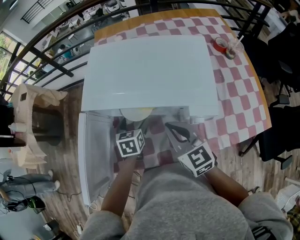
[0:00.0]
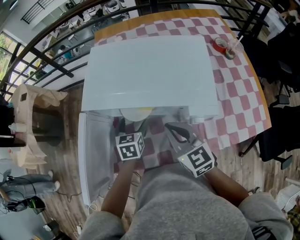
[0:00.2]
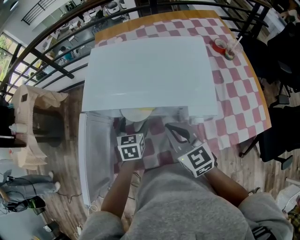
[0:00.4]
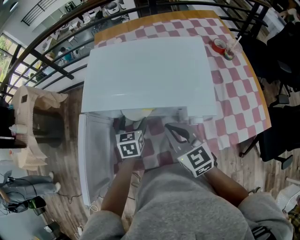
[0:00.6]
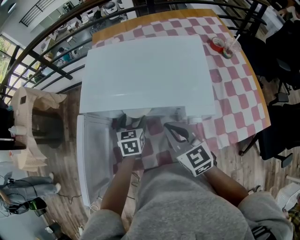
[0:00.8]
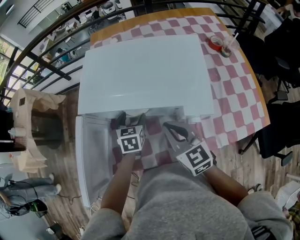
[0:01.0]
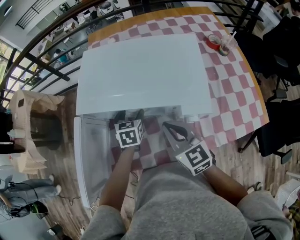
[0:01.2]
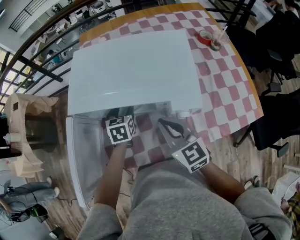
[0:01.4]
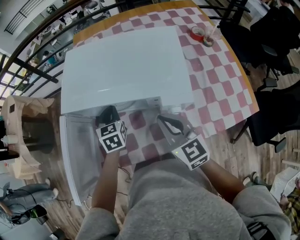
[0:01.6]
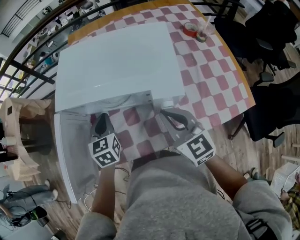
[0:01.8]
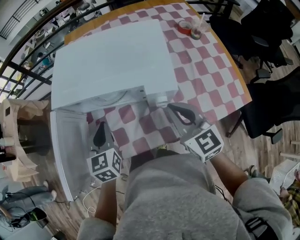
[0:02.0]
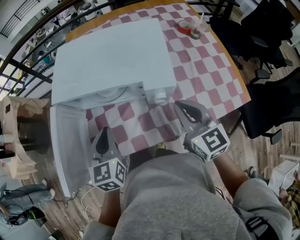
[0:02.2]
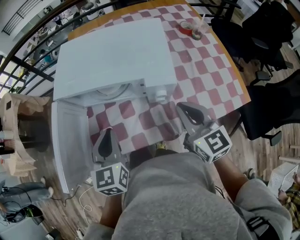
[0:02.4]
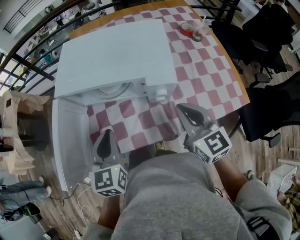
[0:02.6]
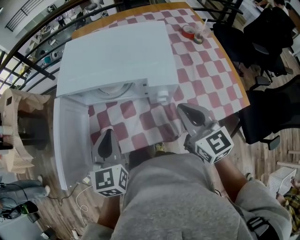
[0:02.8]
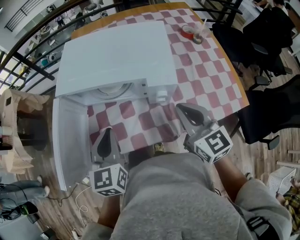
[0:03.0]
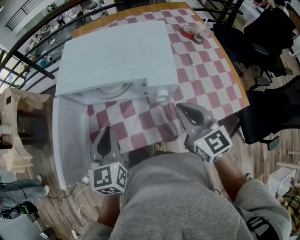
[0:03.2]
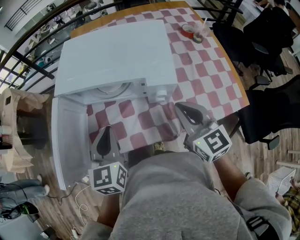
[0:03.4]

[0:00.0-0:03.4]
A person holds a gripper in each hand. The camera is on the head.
0:00.0 to 0:01.6: The right gripper changes place by about 5 cm, while the left gripper shifts by approximately 5 cm, and closes up.
0:01.6 to 0:03.4: The right gripper shifts approximately 10 cm to the right and backward, while the left gripper shifts about 20 cm backward and upward.

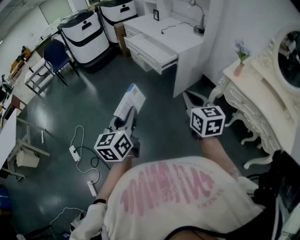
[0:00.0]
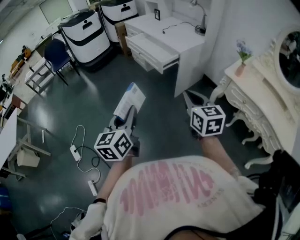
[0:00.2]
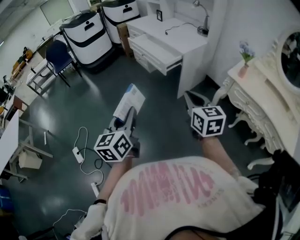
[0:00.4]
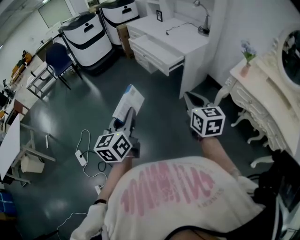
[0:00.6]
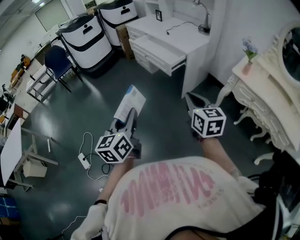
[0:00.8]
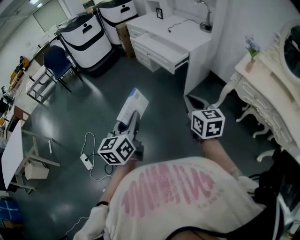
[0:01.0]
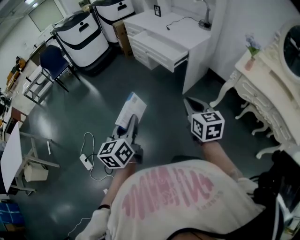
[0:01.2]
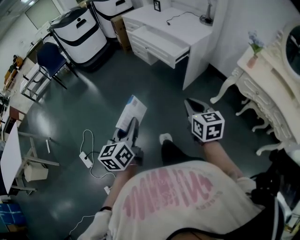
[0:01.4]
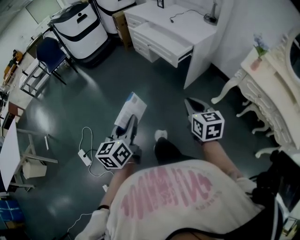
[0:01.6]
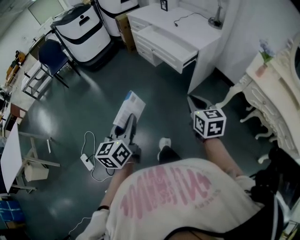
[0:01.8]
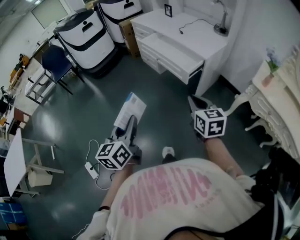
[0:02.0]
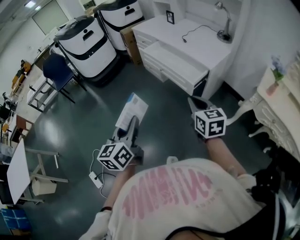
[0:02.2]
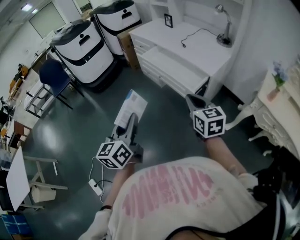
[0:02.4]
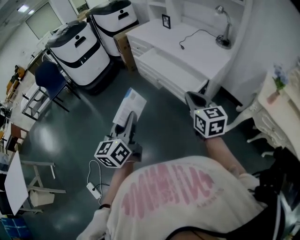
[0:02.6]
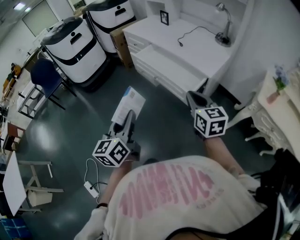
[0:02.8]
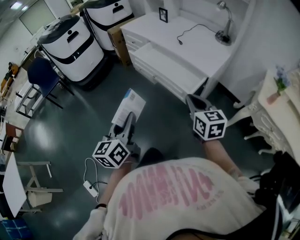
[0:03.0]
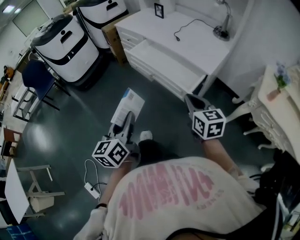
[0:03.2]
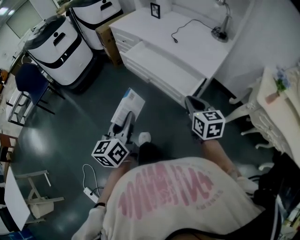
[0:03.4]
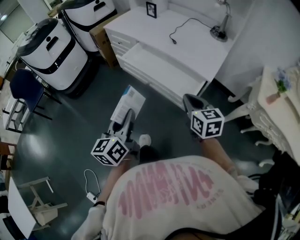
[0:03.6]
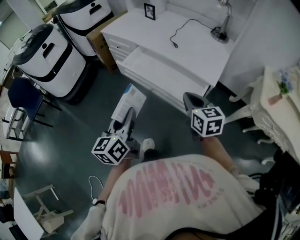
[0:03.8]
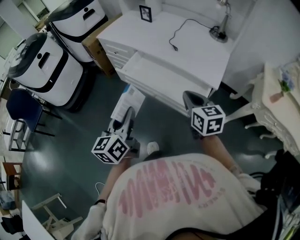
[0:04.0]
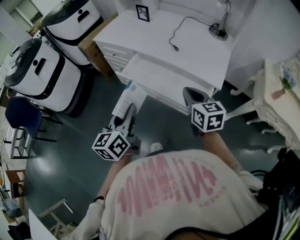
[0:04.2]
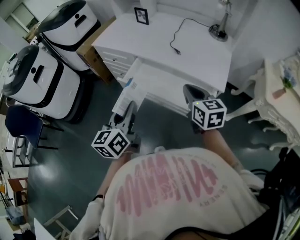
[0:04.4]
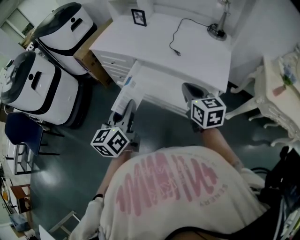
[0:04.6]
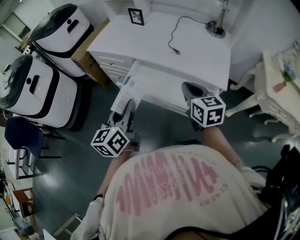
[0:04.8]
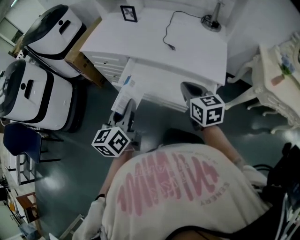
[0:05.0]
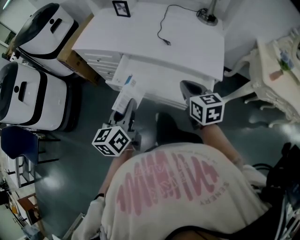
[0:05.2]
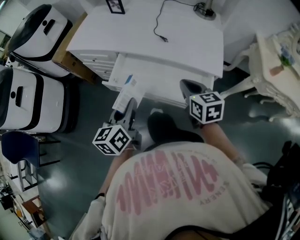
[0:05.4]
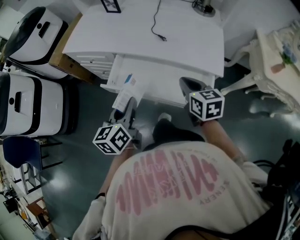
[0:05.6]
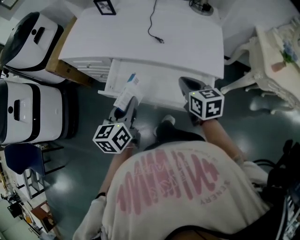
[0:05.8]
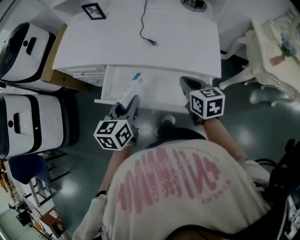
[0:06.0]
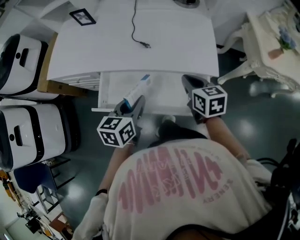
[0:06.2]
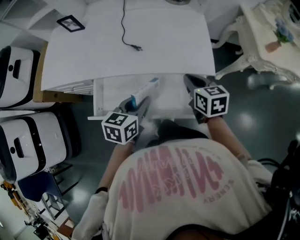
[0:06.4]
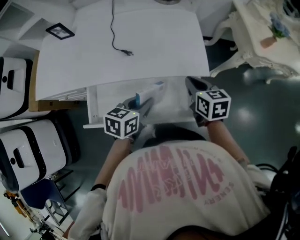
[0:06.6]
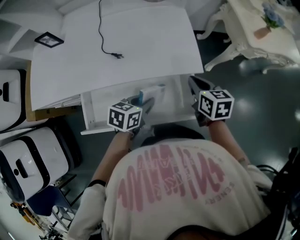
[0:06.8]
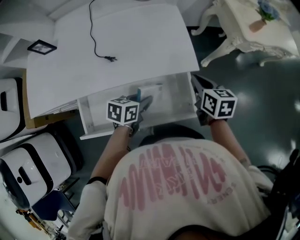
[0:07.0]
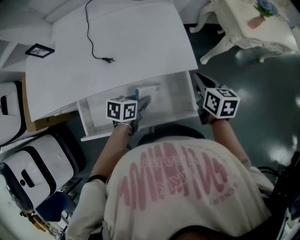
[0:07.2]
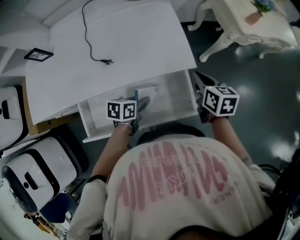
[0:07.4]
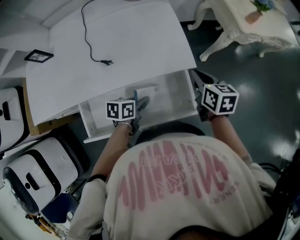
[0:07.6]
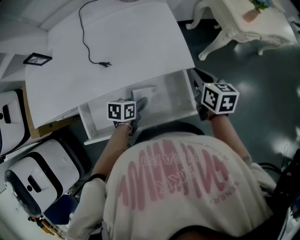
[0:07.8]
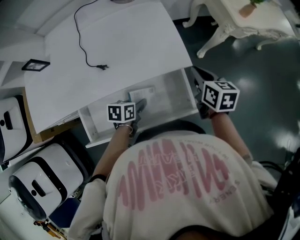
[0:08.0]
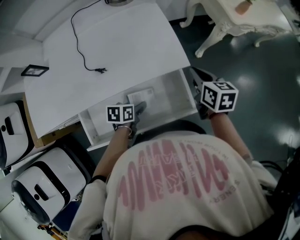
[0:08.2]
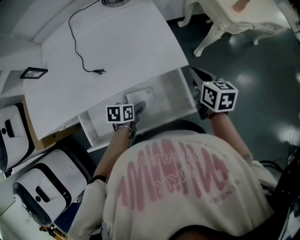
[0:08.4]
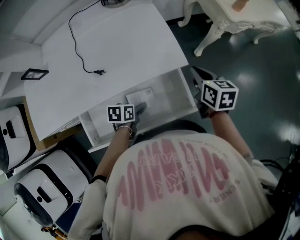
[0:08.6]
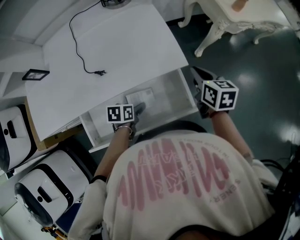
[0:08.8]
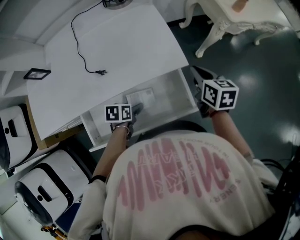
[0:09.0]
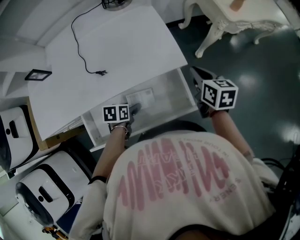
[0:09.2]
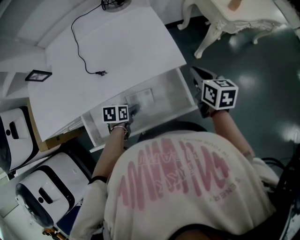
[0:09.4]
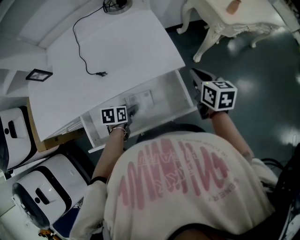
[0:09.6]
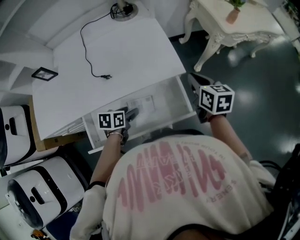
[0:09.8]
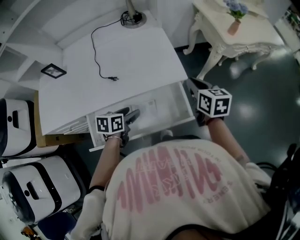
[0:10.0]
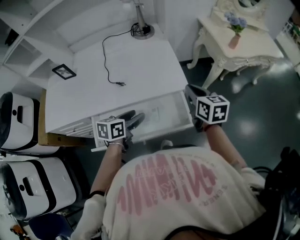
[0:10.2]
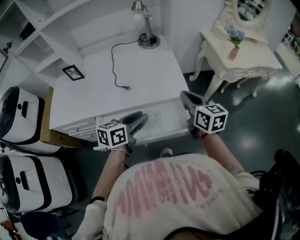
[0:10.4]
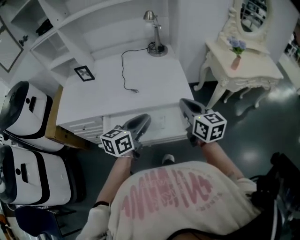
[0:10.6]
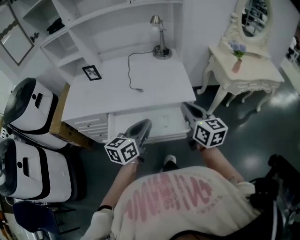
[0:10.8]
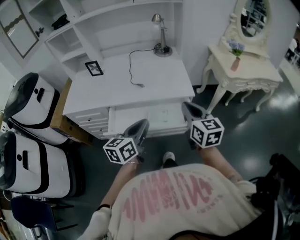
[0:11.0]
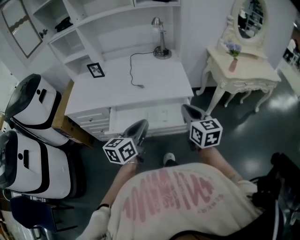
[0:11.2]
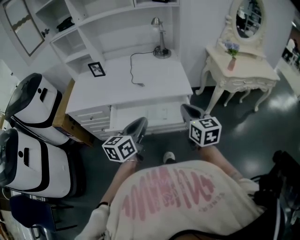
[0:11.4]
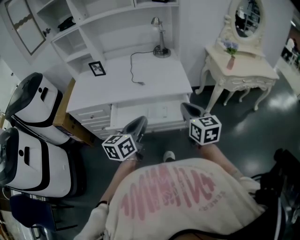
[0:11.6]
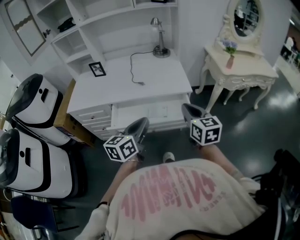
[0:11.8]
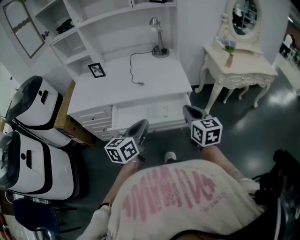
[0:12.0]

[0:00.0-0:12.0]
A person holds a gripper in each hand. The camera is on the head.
0:00.0 to 0:01.6: The two grippers go some 15 cm to the left, downward and forward.
0:01.6 to 0:03.0: The grippers both shift forward by approximately 30 cm.
0:03.0 to 0:04.4: The grippers both shift forward by about 30 cm. The left gripper rotates about 20 degrees.
0:04.4 to 0:06.0: The right gripper moves forward, downward and to the right, about 15 cm, and changes its angle by about 20 degrees; the left gripper goes about 20 cm forward and downward, and swivels some 30 degrees.
0:06.0 to 0:07.6: The right gripper shifts by about 20 cm, and rotates roughly 30 degrees. Meanwhile the left gripper is displaced downward by roughly 15 cm, and changes its angle by roughly 50 degrees.
0:07.6 to 0:09.0: The left gripper ends up approximately 5 cm from where it was, and opens its fingers.
0:09.0 to 0:10.4: The right gripper moves upward, backward and to the left, some 20 cm, and rotates approximately 30 degrees, while the left gripper is displaced upward by roughly 25 cm, tilts its fingers approximately 40 degrees upward, and closes up.
0:10.4 to 0:12.0: The grippers both shift backward by roughly 20 cm. The left gripper rotates some 20 degrees, and closes up.

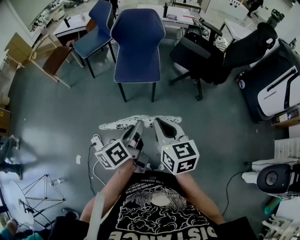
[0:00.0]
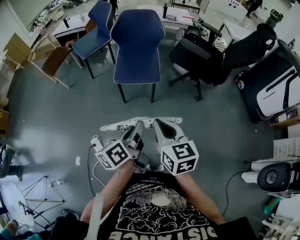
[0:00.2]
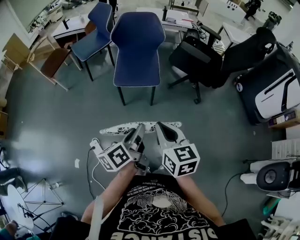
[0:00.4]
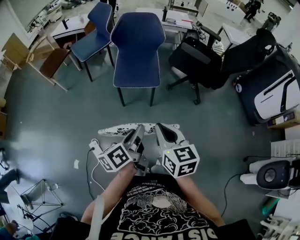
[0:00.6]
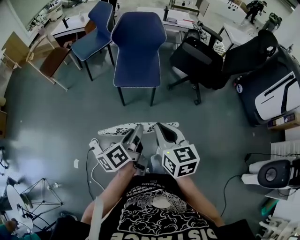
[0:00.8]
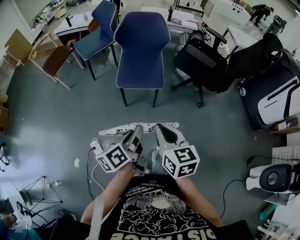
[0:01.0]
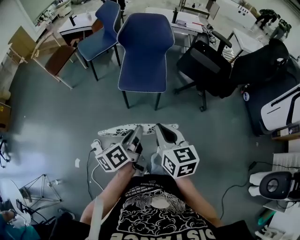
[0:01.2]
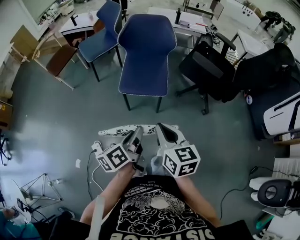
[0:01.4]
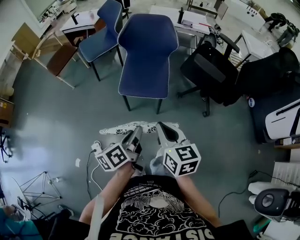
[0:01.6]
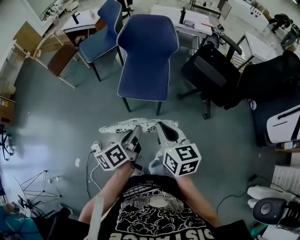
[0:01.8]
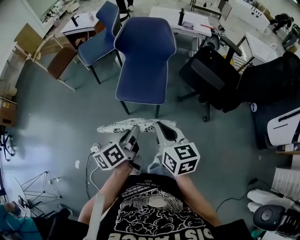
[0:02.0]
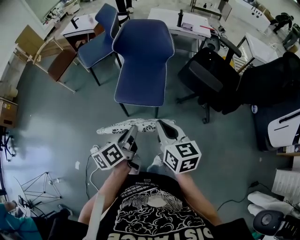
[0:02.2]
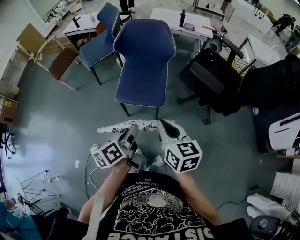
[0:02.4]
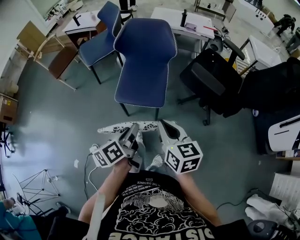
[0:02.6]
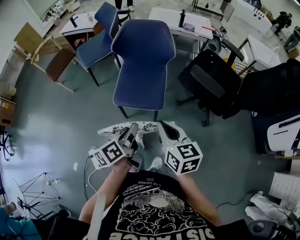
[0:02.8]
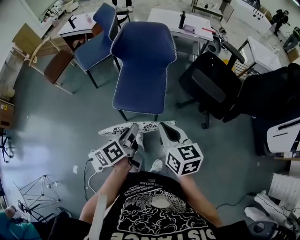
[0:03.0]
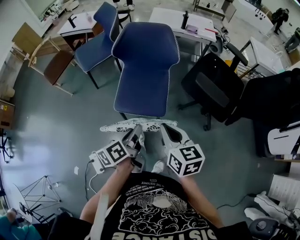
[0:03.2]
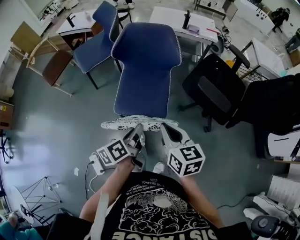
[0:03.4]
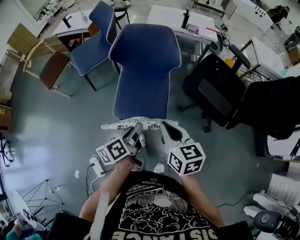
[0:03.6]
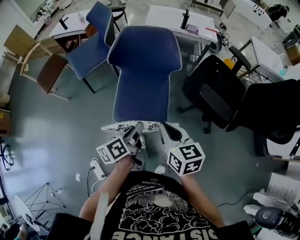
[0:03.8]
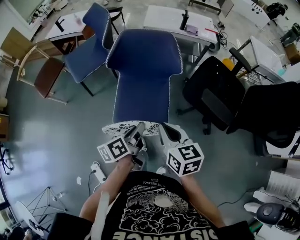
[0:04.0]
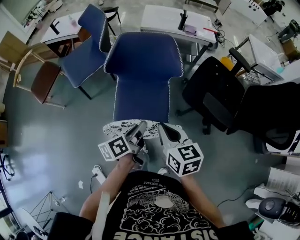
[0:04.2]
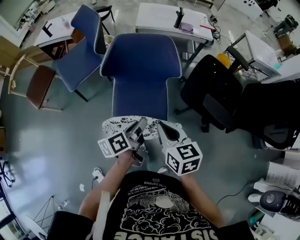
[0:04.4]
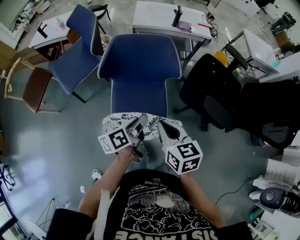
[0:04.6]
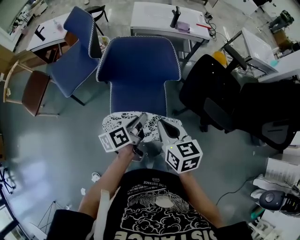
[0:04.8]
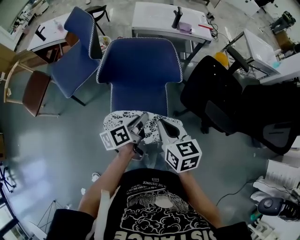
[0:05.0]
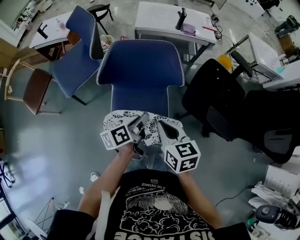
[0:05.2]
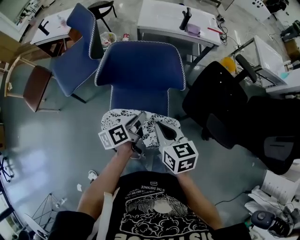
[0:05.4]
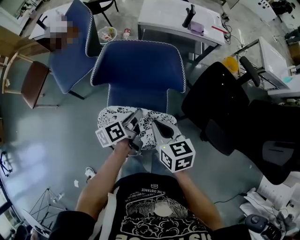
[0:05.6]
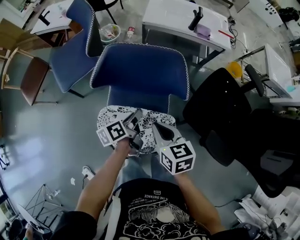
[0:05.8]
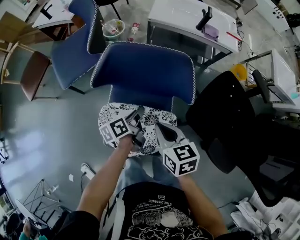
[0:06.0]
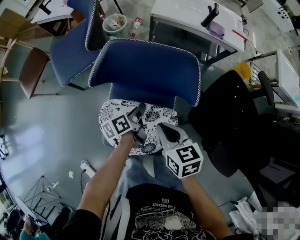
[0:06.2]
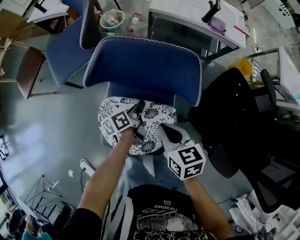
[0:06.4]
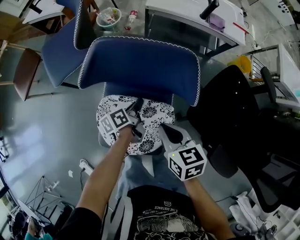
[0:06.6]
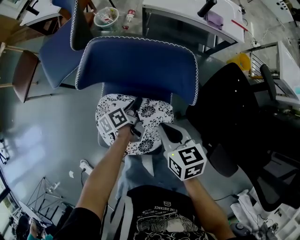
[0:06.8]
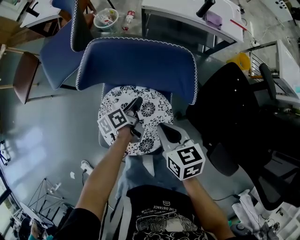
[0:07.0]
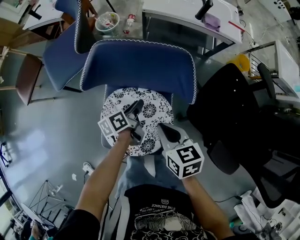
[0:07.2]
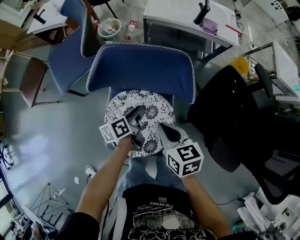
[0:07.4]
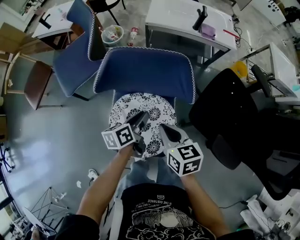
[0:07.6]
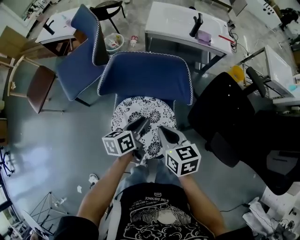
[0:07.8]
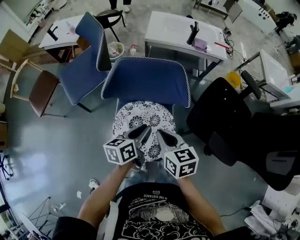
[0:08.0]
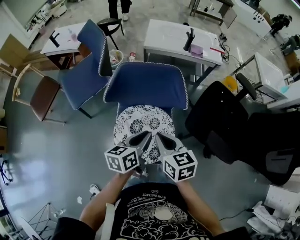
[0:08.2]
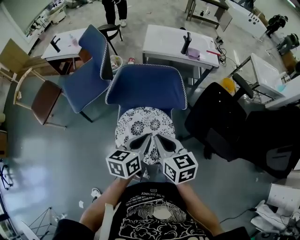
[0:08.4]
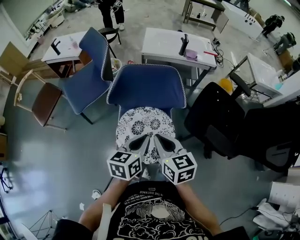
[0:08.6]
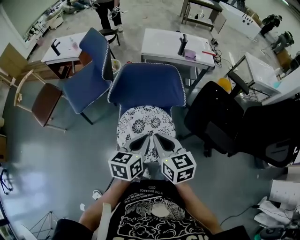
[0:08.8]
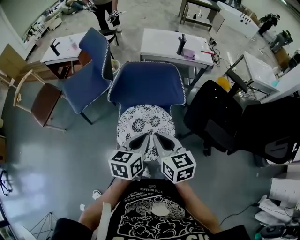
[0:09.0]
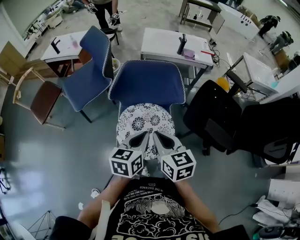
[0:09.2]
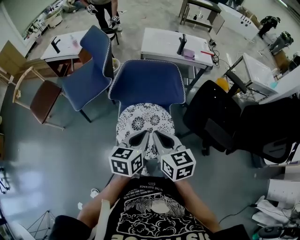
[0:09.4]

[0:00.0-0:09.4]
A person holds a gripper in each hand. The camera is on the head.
0:00.0 to 0:01.6: Both grippers travel together forward, roughly 15 cm.
0:01.6 to 0:03.2: The two grippers go approximately 15 cm forward.
0:03.2 to 0:04.8: Both grippers move forward, roughly 25 cm.
0:04.8 to 0:06.2: The right gripper travels forward and downward by approximately 15 cm, while the left gripper moves downward and forward, approximately 20 cm.
0:06.2 to 0:07.8: The left gripper moves upward, approximately 10 cm, and swivels approximately 30 degrees.
0:07.8 to 0:09.4: Both grippers travel together upward and backward, some 15 cm. The left gripper rotates some 30 degrees, and closes its fingers.
